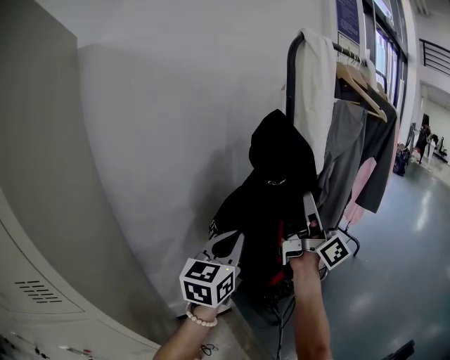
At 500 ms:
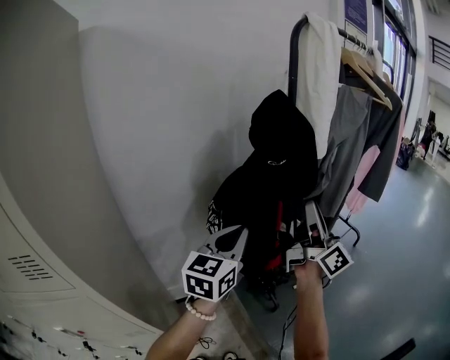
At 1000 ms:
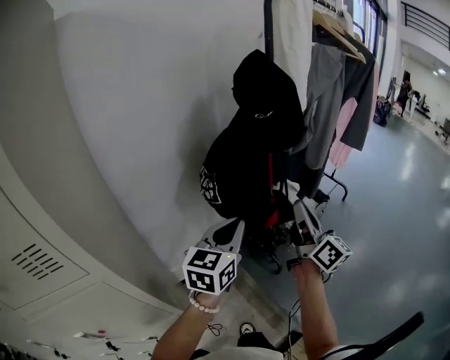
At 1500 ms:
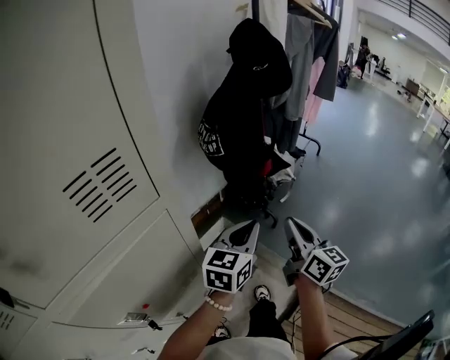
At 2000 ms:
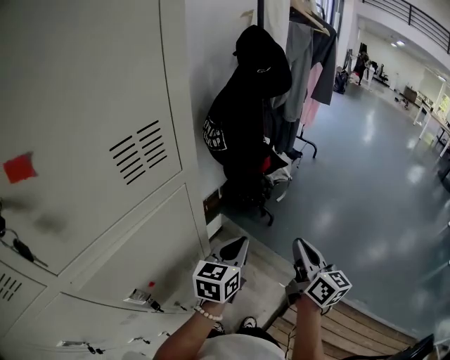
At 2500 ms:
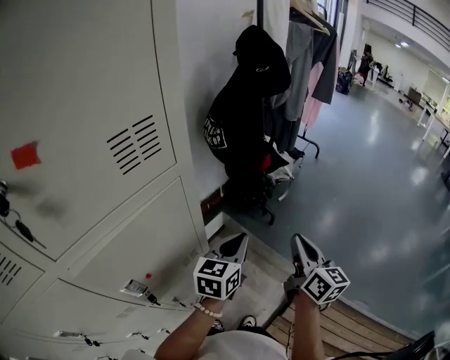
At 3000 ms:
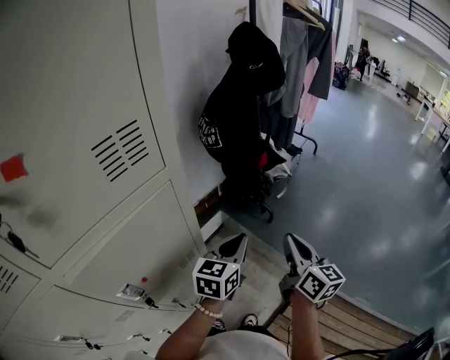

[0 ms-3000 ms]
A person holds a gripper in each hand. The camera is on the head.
0 ms to 1500 ms: Both grippers travel together backward and downward, about 35 cm. The right gripper tips its fingers downward by some 40 degrees, while the left gripper turns by roughly 30 degrees.
1500 ms to 3000 ms: Both grippers move backward, about 10 cm.

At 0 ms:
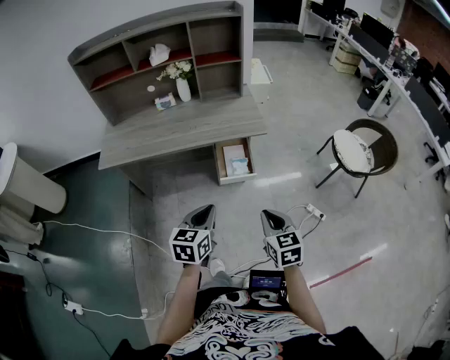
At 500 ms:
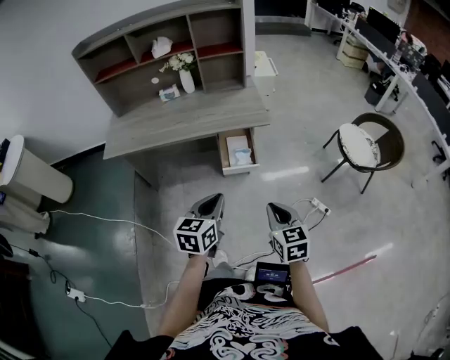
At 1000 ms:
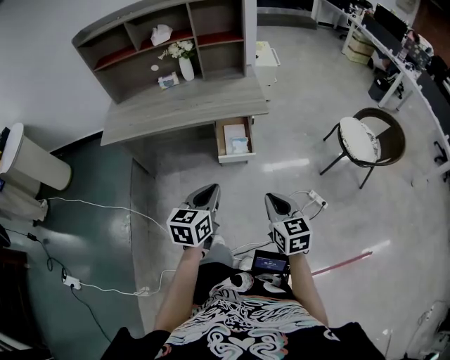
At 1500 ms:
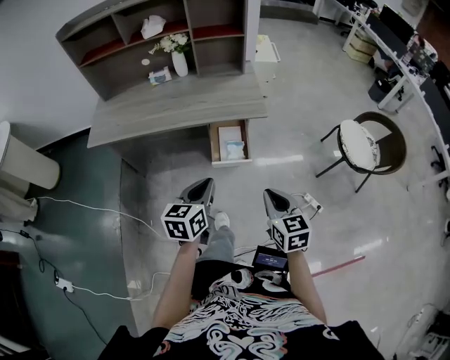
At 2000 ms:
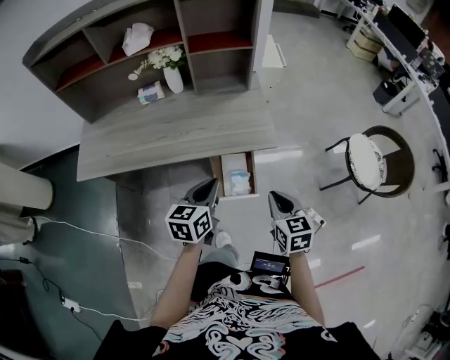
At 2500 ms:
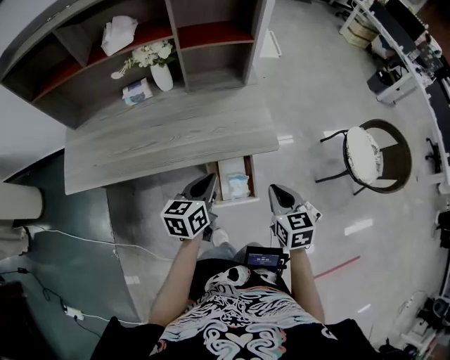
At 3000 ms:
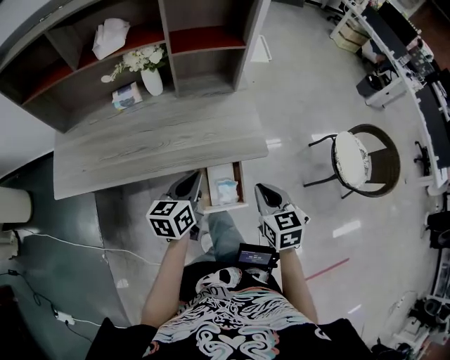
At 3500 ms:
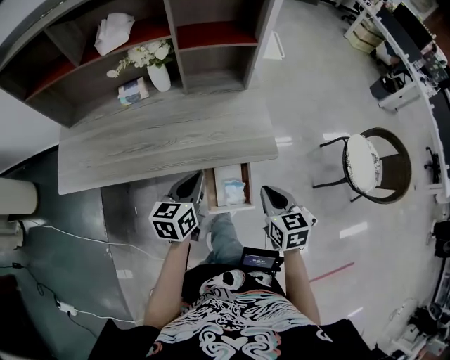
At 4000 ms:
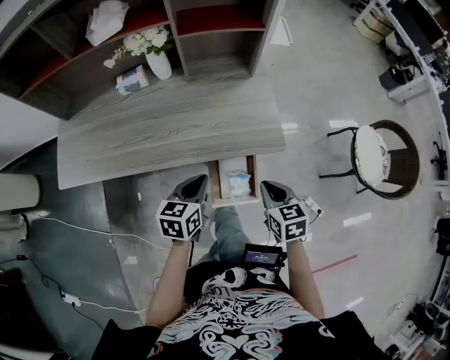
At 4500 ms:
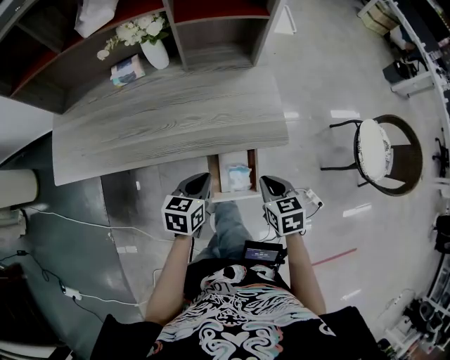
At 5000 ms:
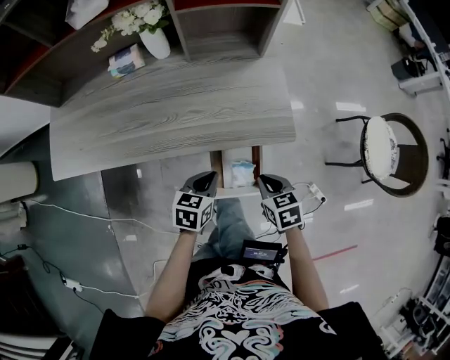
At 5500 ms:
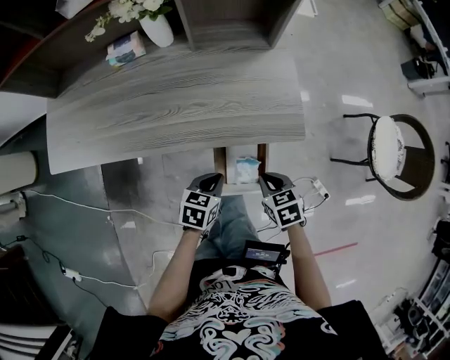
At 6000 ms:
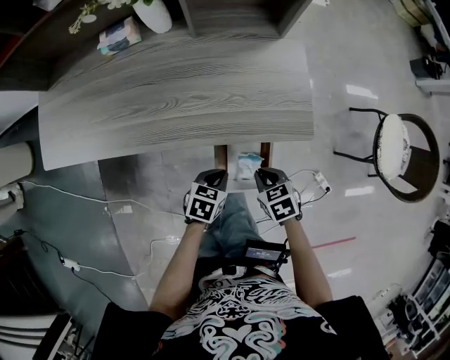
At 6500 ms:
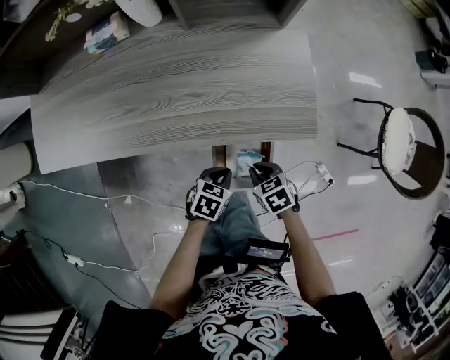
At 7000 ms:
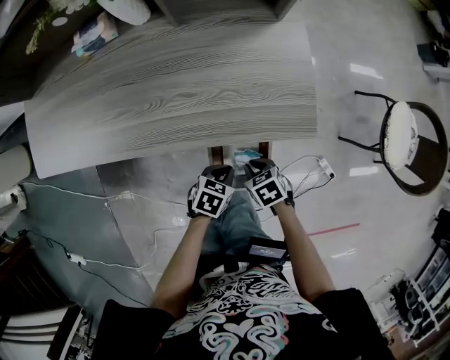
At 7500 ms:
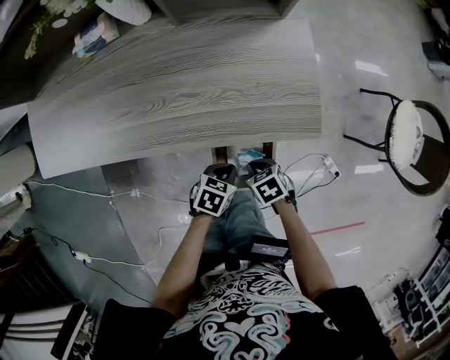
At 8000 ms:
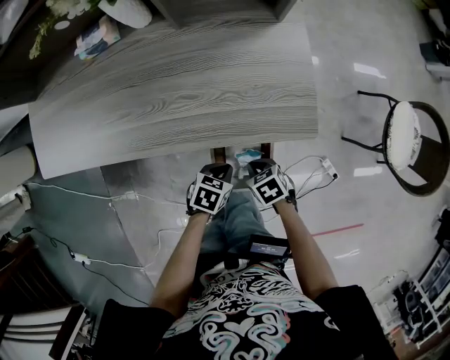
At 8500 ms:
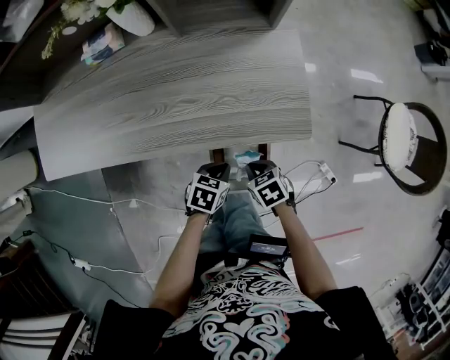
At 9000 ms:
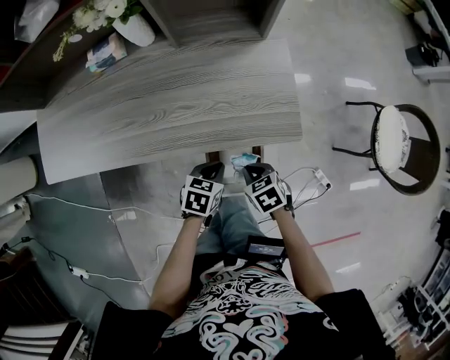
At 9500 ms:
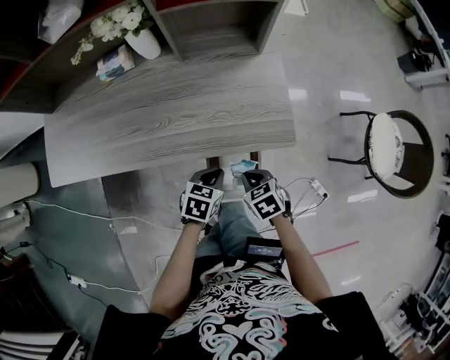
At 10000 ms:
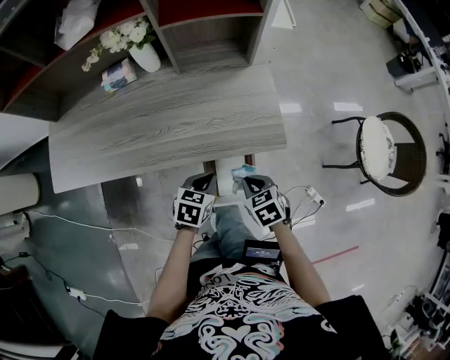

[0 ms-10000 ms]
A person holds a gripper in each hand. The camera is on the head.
0 ms to 2000 ms: Both grippers move forward, some 25 cm.
2000 ms to 4000 ms: The left gripper heads downward and forward, covering some 10 cm; the right gripper shifts roughly 10 cm forward and downward.
4000 ms to 6000 ms: Both grippers travel together downward, about 15 cm. The right gripper turns by some 30 degrees, while the left gripper rotates roughly 30 degrees.
6000 ms to 8000 ms: The right gripper moves downward, about 5 cm.
8000 ms to 10000 ms: Both grippers travel together upward, some 15 cm.

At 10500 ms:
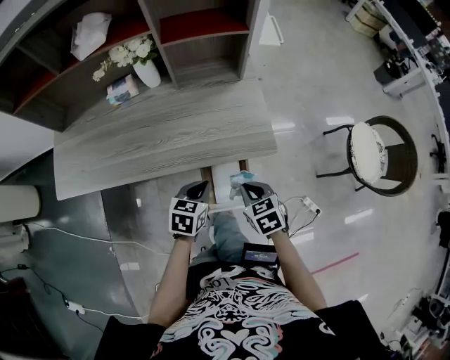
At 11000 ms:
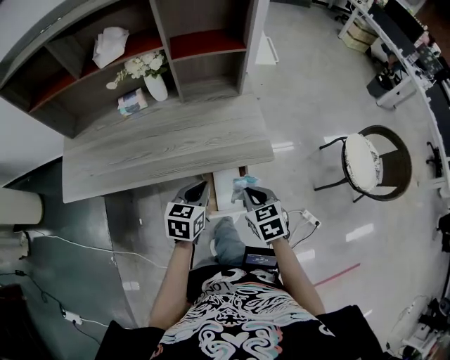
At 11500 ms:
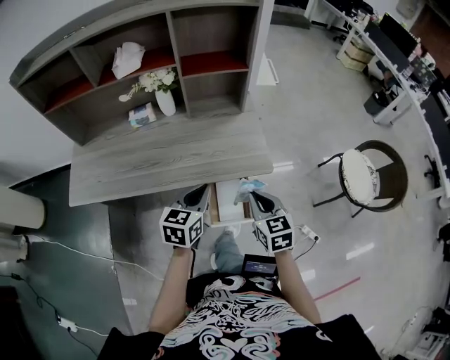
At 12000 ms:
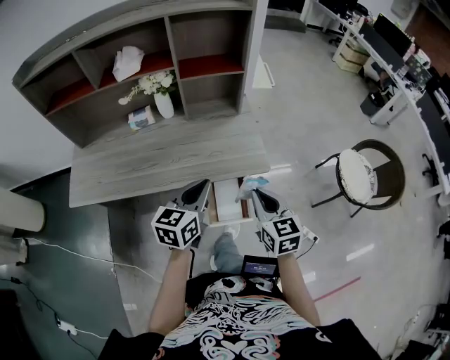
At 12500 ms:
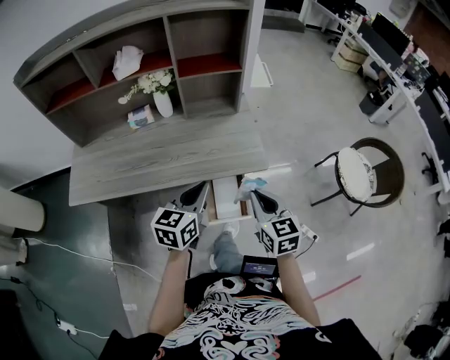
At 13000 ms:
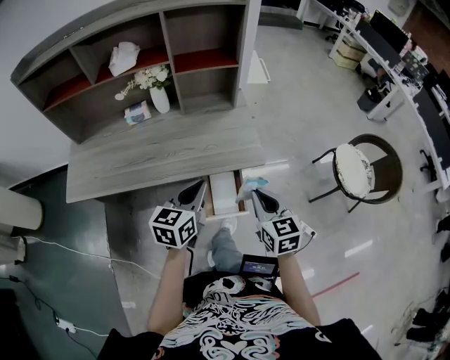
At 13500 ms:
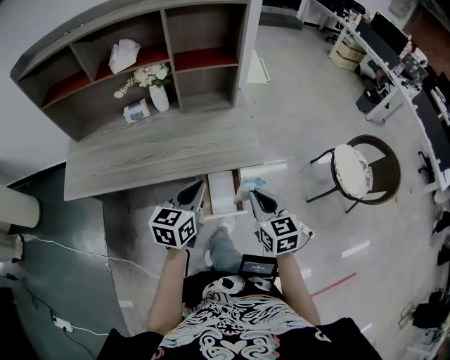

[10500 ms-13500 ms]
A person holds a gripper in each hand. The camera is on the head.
10500 ms to 12000 ms: Both grippers move upward, roughly 20 cm. The left gripper swivels some 30 degrees. Meanwhile the right gripper swivels approximately 30 degrees.
12000 ms to 13500 ms: The grippers make only small movements.

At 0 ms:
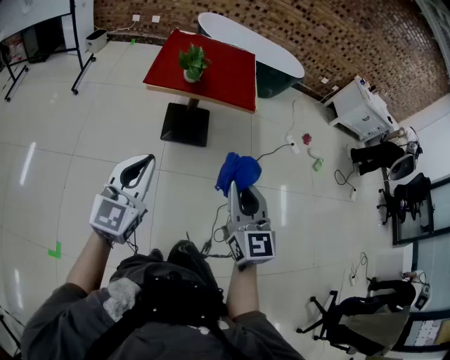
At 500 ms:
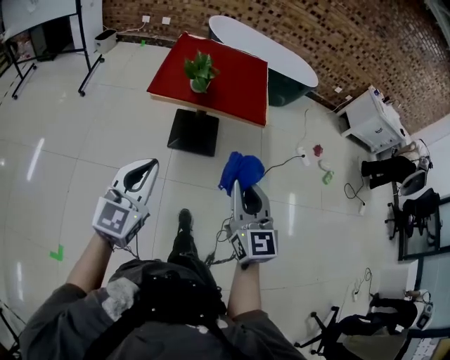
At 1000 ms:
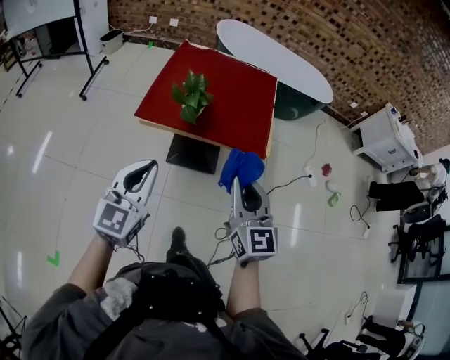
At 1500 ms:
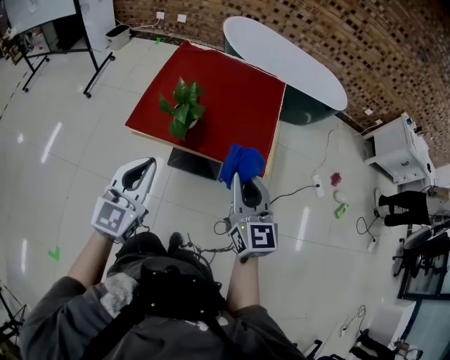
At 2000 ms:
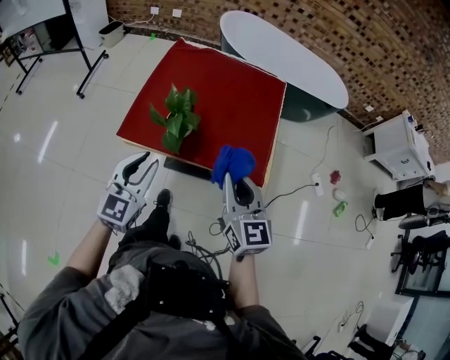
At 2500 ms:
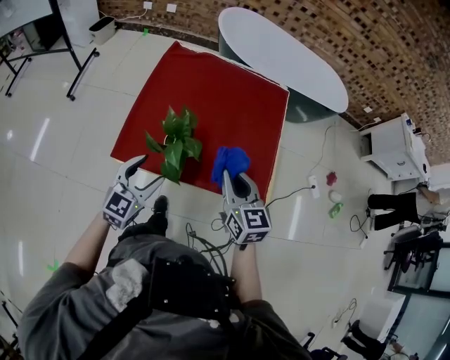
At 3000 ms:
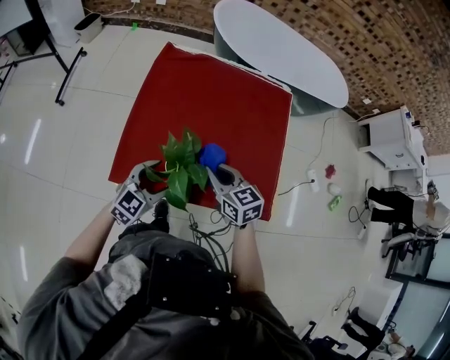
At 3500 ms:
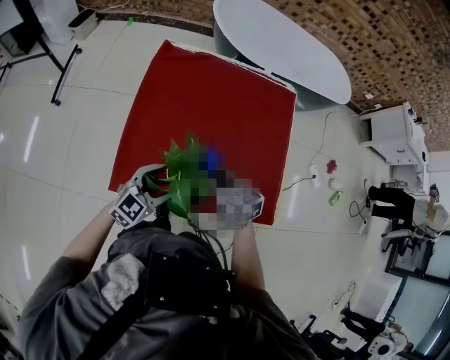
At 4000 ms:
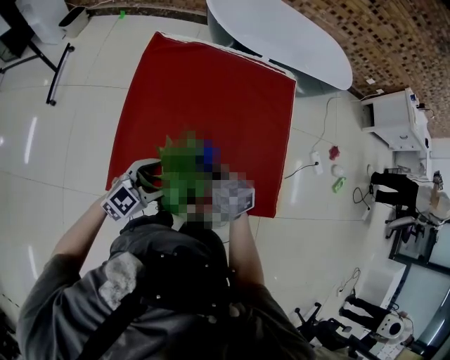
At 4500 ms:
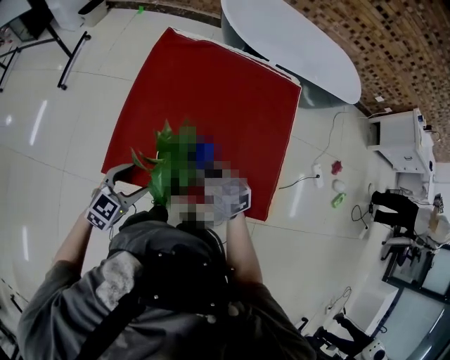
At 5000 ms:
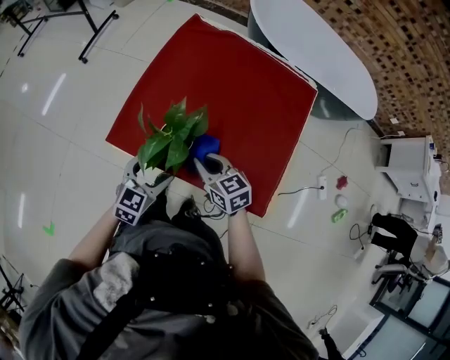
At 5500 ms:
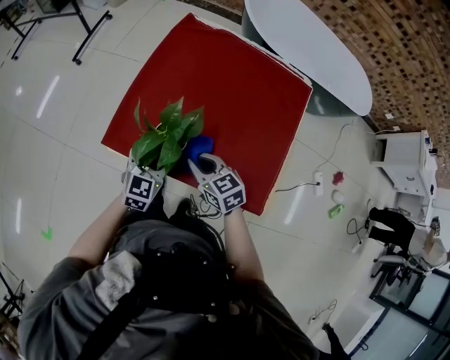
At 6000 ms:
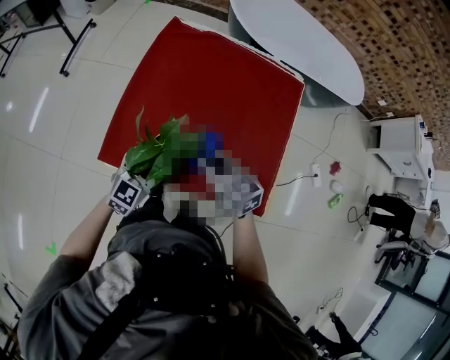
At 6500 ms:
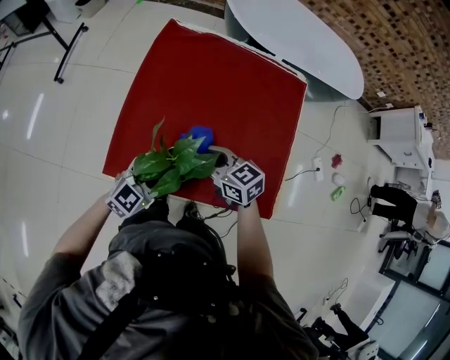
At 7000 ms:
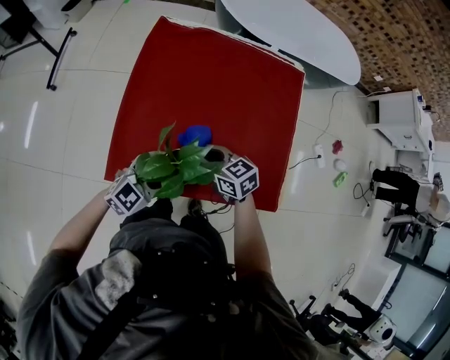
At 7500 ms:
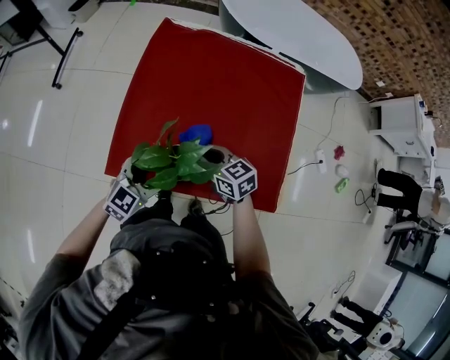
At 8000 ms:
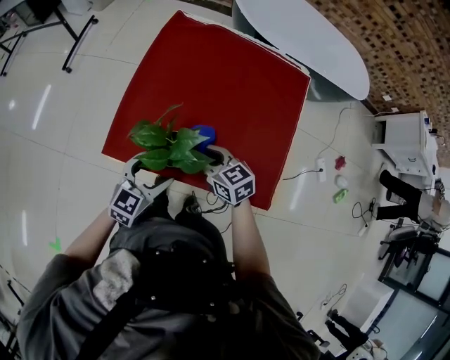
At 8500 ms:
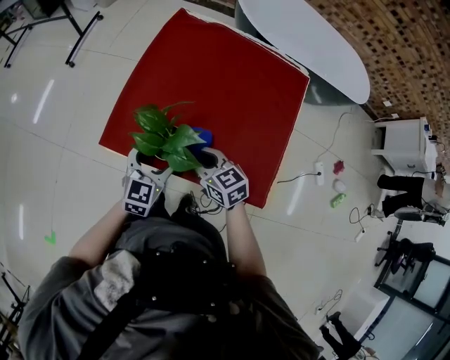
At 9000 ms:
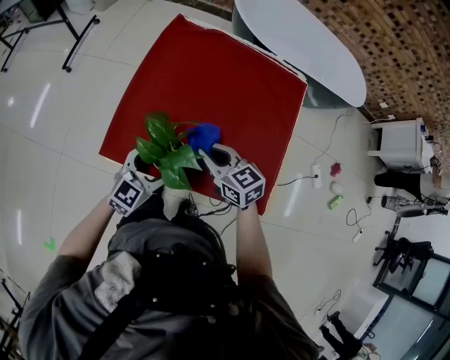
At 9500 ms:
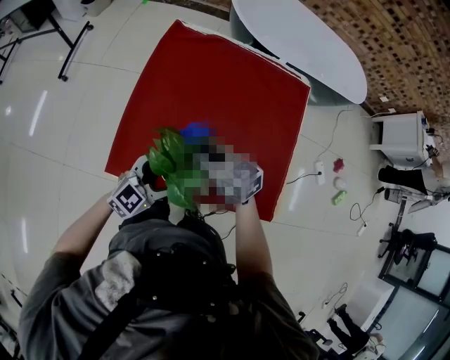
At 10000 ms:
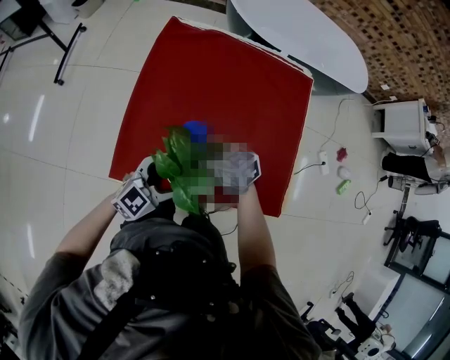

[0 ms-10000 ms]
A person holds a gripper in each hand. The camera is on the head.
0 ms to 2000 ms: The two grippers travel together, forward, roughly 70 cm.
2000 ms to 4000 ms: The left gripper shifts about 35 cm forward and downward, swivels some 40 degrees, and opens up, while the right gripper travels forward, downward and to the left by some 40 cm, and swivels some 40 degrees.
4000 ms to 6000 ms: The left gripper changes its angle by about 20 degrees; the right gripper heads upward, covering roughly 5 cm.
8000 ms to 10000 ms: The left gripper shifts about 5 cm forward, and changes its angle by roughly 30 degrees; the right gripper travels forward and to the left by approximately 10 cm.
